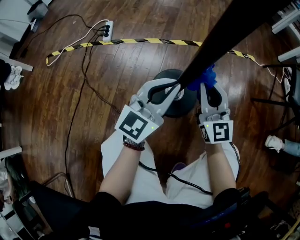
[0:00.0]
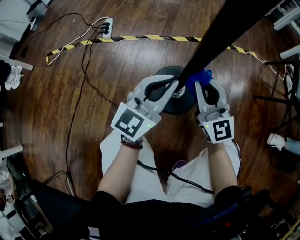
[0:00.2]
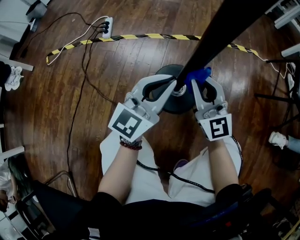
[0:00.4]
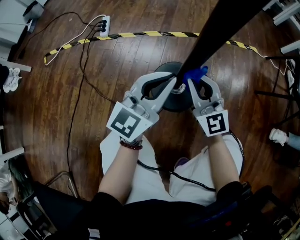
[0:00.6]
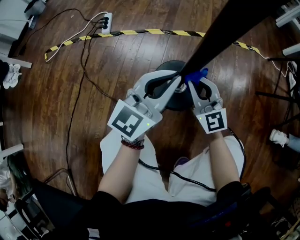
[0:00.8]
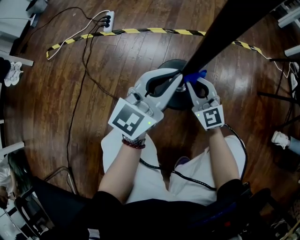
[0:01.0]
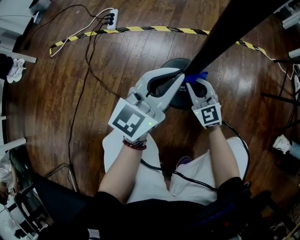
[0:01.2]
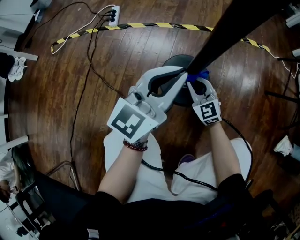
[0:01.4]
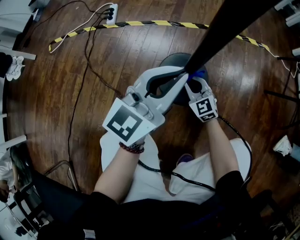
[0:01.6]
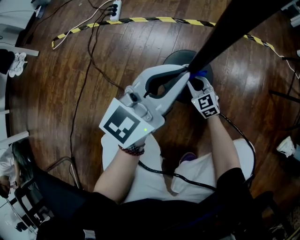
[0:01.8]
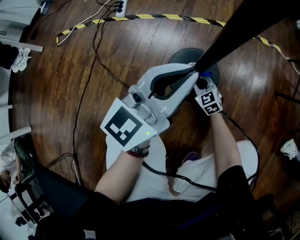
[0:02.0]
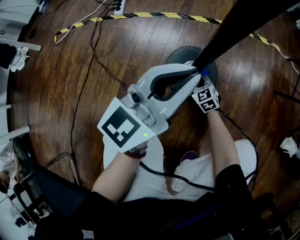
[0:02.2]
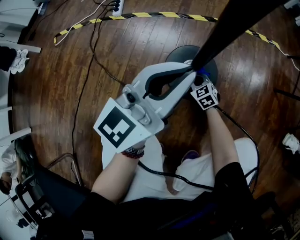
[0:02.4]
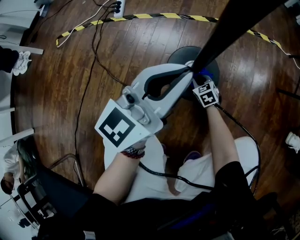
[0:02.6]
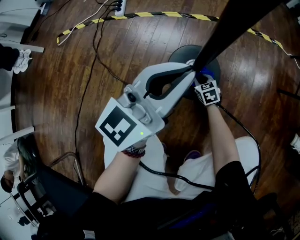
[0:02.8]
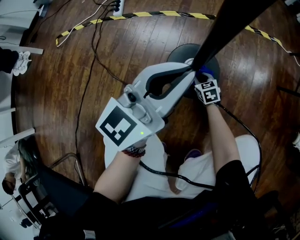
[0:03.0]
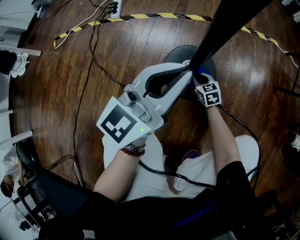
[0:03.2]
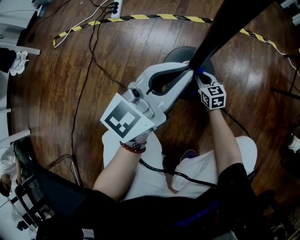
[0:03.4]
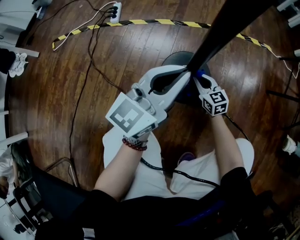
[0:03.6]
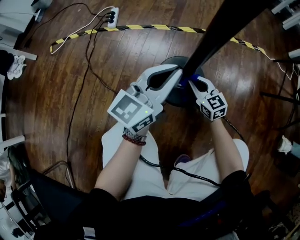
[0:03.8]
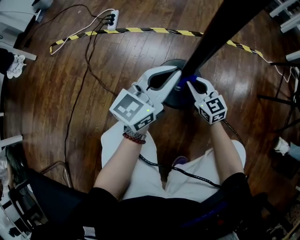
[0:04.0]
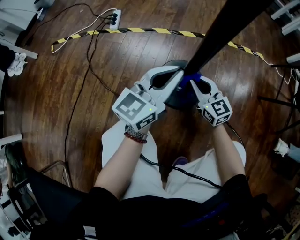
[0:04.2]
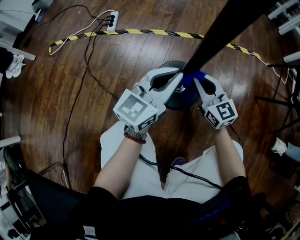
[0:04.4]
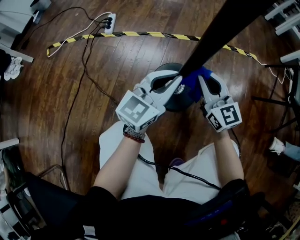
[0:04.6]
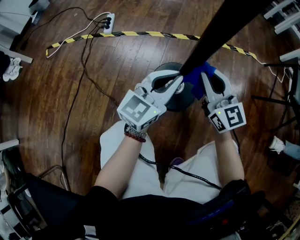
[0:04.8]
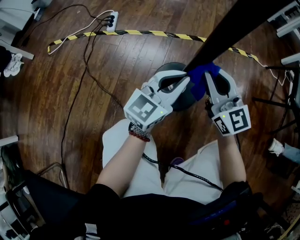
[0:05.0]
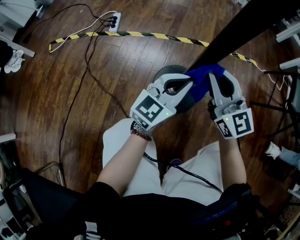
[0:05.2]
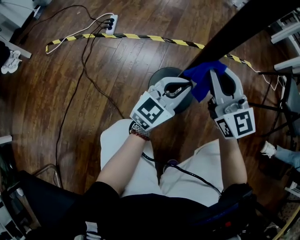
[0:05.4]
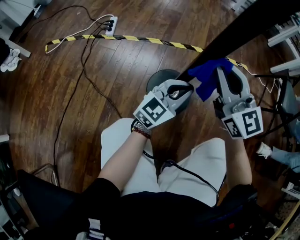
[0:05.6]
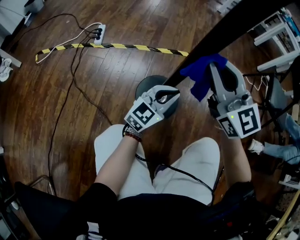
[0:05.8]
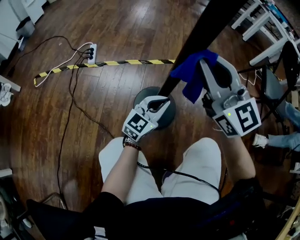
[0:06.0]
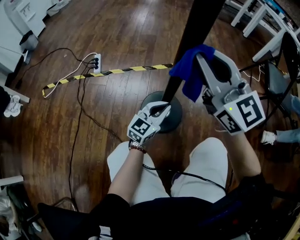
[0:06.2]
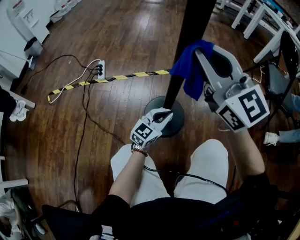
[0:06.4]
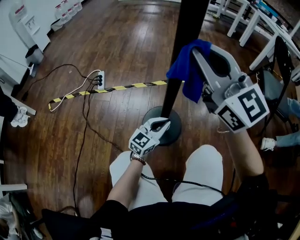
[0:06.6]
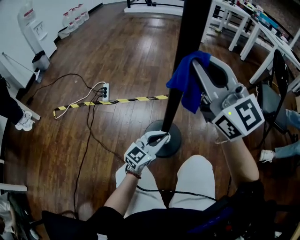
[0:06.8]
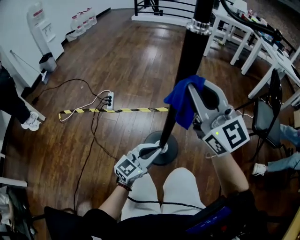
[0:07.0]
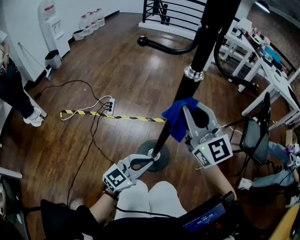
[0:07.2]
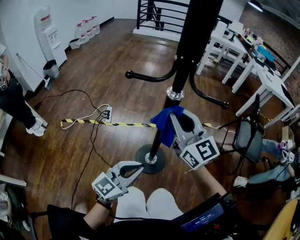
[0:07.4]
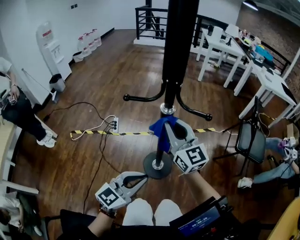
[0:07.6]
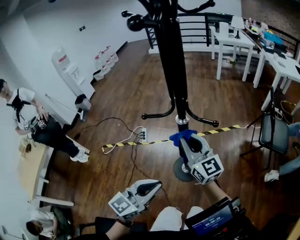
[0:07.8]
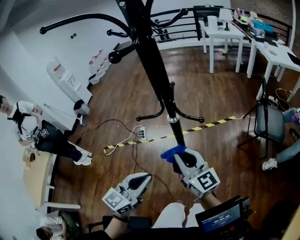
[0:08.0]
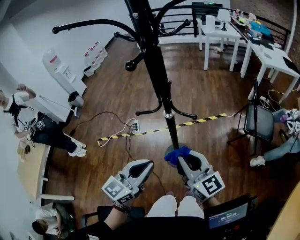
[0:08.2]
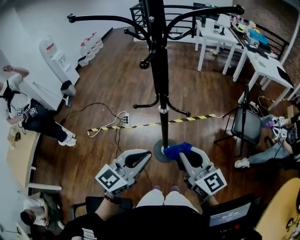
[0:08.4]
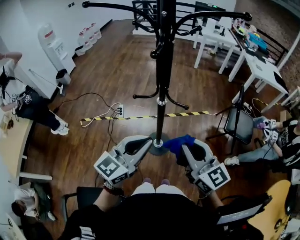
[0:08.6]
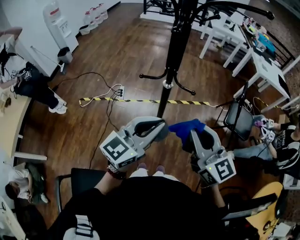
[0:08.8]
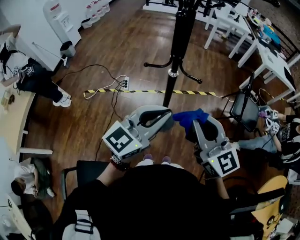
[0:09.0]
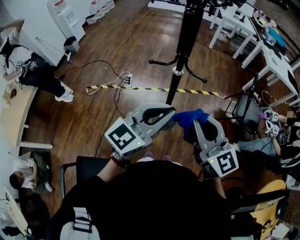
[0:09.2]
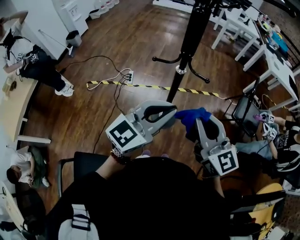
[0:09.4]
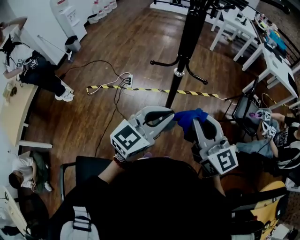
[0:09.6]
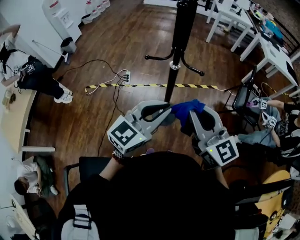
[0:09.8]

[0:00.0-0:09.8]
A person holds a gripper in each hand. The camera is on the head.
0:00.0 to 0:01.4: The right gripper moves downward, about 20 cm, and turns by some 30 degrees.
0:01.4 to 0:02.8: The right gripper shifts some 20 cm downward, and turns by about 40 degrees.
0:02.8 to 0:04.2: The right gripper heads upward, covering some 30 cm, and tips its fingers upward by some 30 degrees.
0:04.2 to 0:05.6: The left gripper travels to the right by about 5 cm; the right gripper is displaced upward by about 25 cm, and rotates some 20 degrees.
0:05.6 to 0:07.0: The right gripper moves upward, approximately 30 cm. The left gripper shifts roughly 15 cm upward and backward.
0:07.0 to 0:08.4: The left gripper moves upward, about 50 cm; the right gripper goes some 35 cm upward and backward, and changes its angle by some 30 degrees.
0:08.4 to 0:09.8: The right gripper shifts by approximately 5 cm.

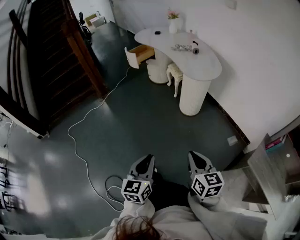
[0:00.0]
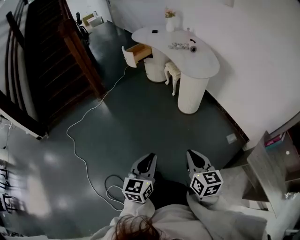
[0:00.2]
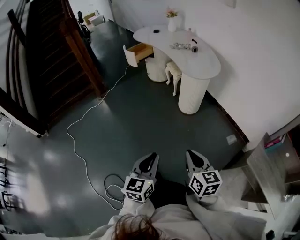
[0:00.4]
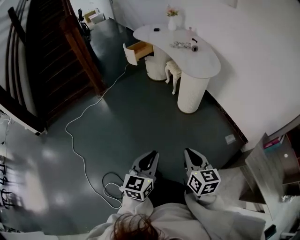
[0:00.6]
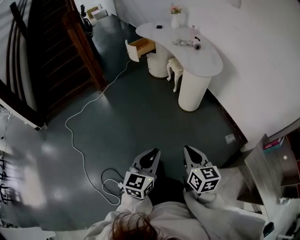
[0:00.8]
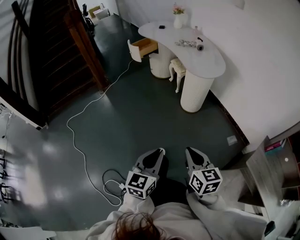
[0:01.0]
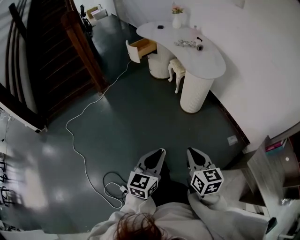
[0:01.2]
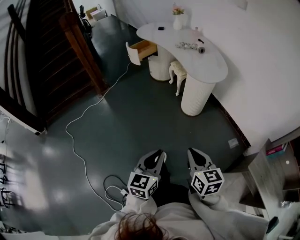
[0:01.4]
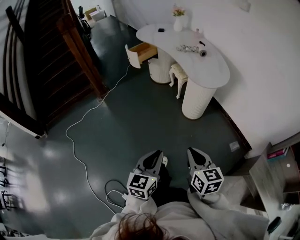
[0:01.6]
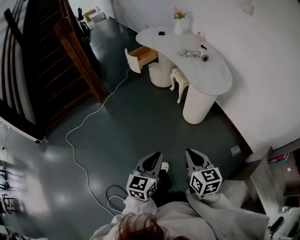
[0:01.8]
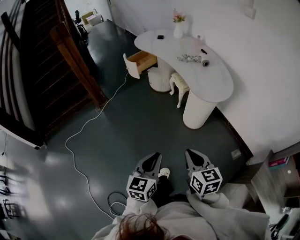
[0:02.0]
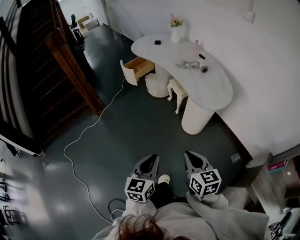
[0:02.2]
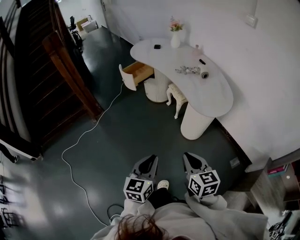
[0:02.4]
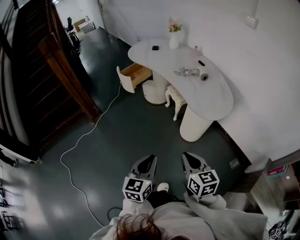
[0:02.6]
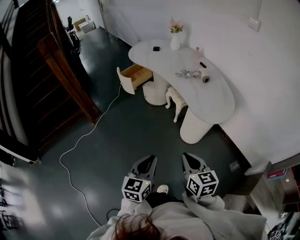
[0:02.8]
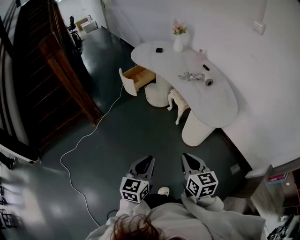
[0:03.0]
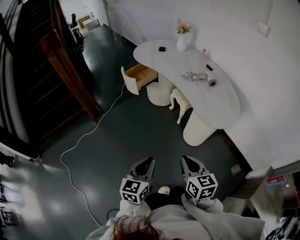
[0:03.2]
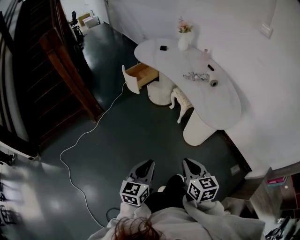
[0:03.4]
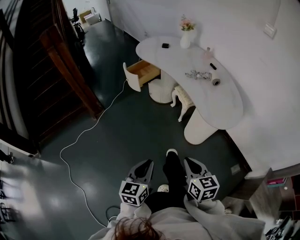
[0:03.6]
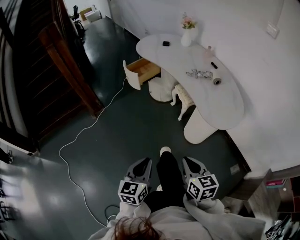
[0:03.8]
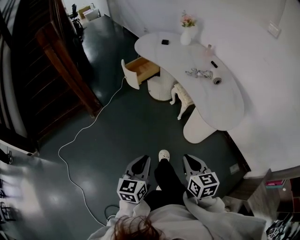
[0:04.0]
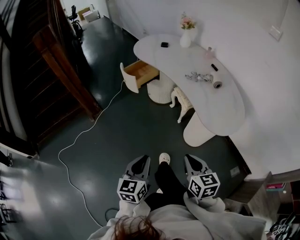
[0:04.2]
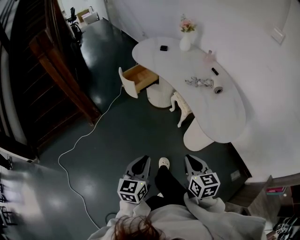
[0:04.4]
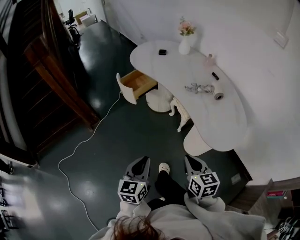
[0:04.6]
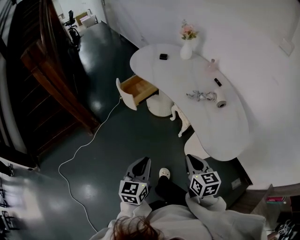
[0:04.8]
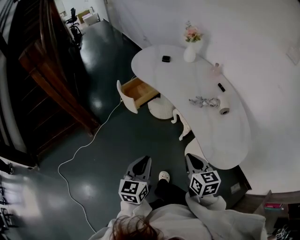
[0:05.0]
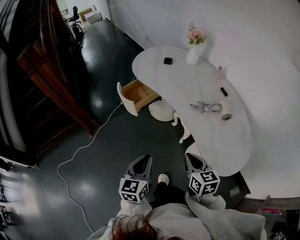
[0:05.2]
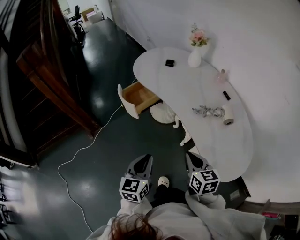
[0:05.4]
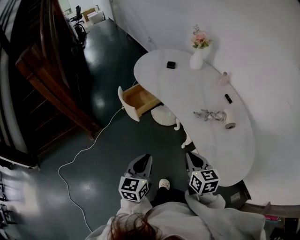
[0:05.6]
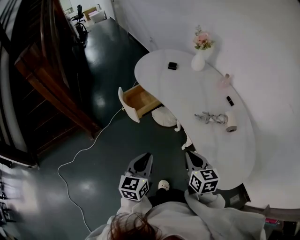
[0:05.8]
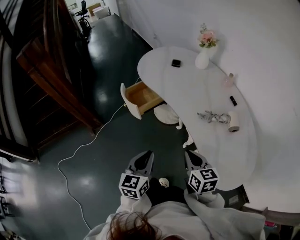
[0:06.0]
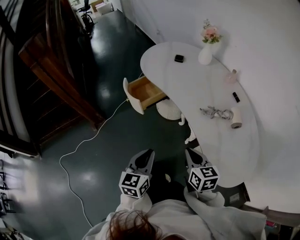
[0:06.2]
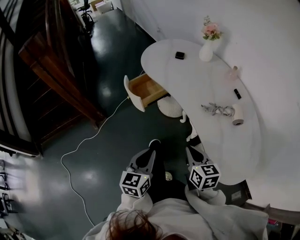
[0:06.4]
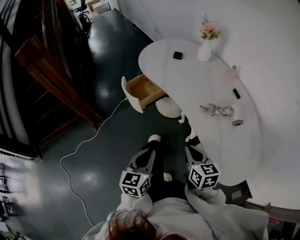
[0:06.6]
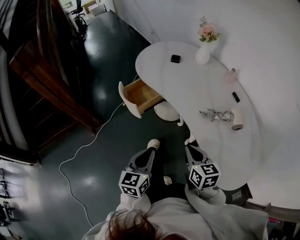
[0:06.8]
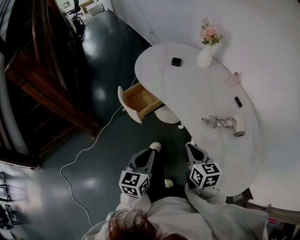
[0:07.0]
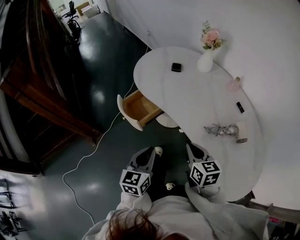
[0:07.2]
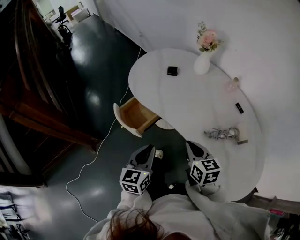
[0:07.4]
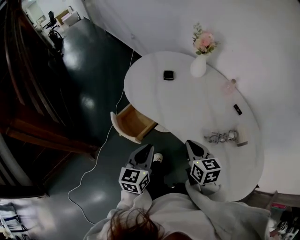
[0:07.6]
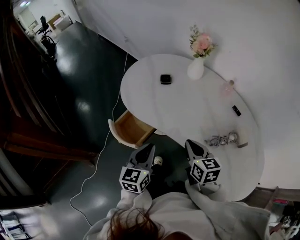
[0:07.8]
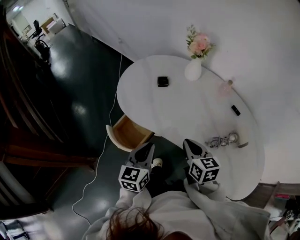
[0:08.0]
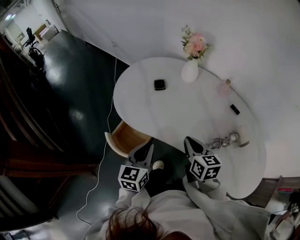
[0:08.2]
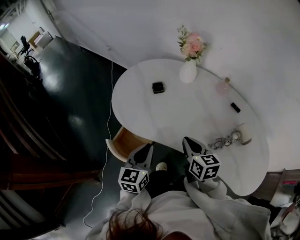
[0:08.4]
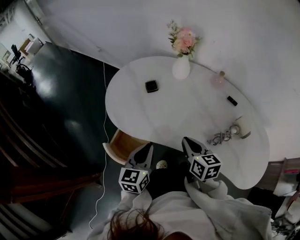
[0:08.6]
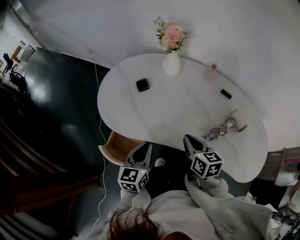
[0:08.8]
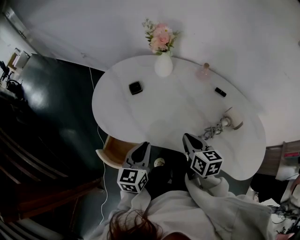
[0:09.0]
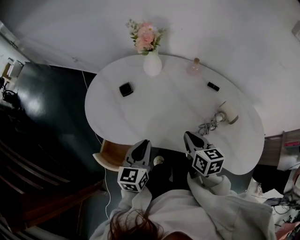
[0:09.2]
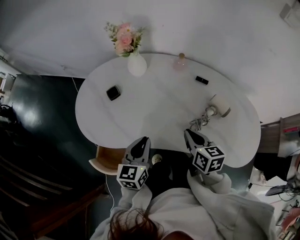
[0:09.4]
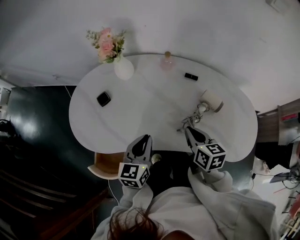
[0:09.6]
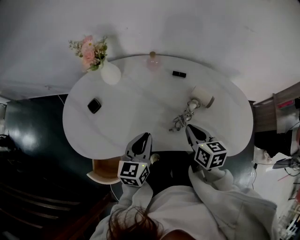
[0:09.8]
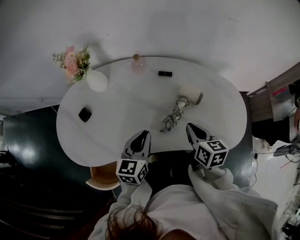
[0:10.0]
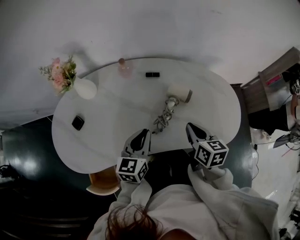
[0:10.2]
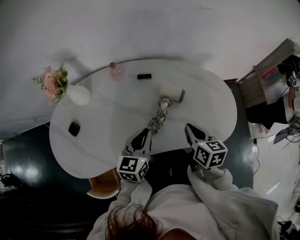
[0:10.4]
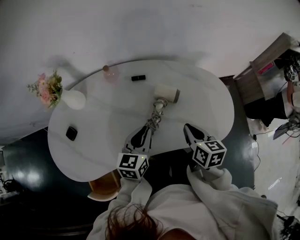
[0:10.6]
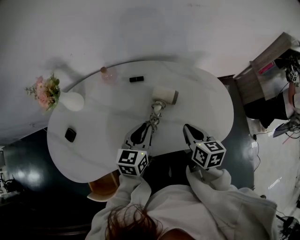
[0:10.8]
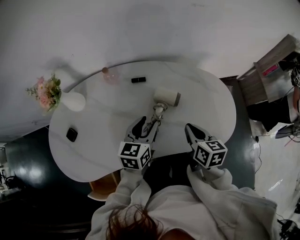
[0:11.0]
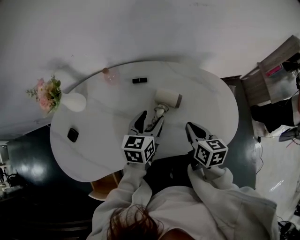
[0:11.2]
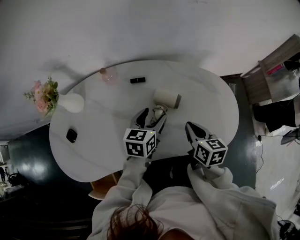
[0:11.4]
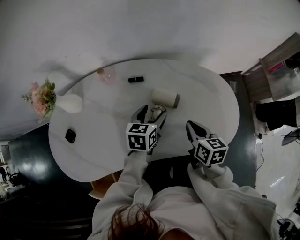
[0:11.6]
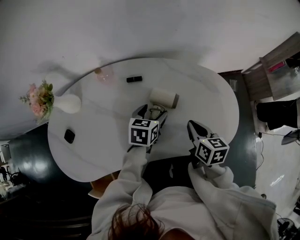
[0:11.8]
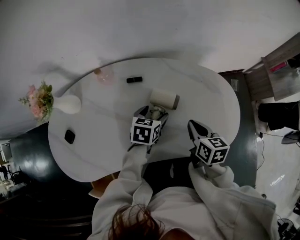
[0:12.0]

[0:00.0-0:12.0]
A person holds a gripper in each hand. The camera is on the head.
0:00.0 to 0:01.6: The grippers both shift forward by some 10 cm.
0:01.6 to 0:03.0: The grippers both shift forward by roughly 25 cm.
0:03.0 to 0:04.4: Both grippers move forward, some 10 cm.
0:04.4 to 0:06.0: Both grippers move forward, roughly 25 cm.
0:06.0 to 0:07.6: The two grippers go about 25 cm forward.
0:07.6 to 0:09.0: The right gripper is displaced forward by approximately 10 cm, and rotates roughly 30 degrees. Meanwhile the left gripper is displaced forward by roughly 15 cm, and changes its angle by roughly 20 degrees.
0:09.0 to 0:10.4: The right gripper ends up some 25 cm from where it was, and changes its angle by approximately 40 degrees. Meanwhile the left gripper changes place by roughly 25 cm, and turns by approximately 40 degrees.
0:10.4 to 0:12.0: The right gripper moves forward, to the right and downward, approximately 10 cm. The left gripper travels forward, downward and to the right by about 20 cm, turns by some 30 degrees, and opens its fingers.

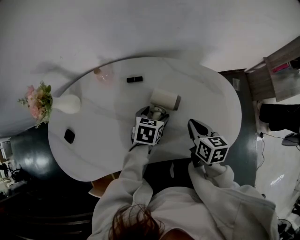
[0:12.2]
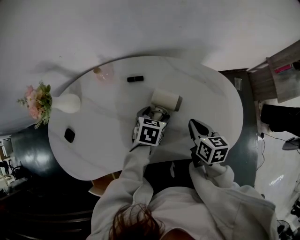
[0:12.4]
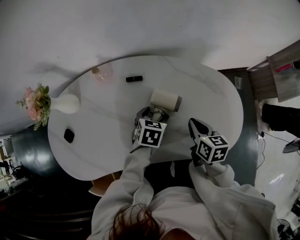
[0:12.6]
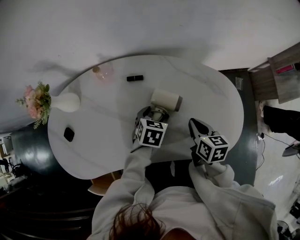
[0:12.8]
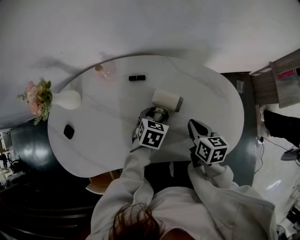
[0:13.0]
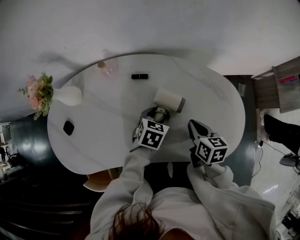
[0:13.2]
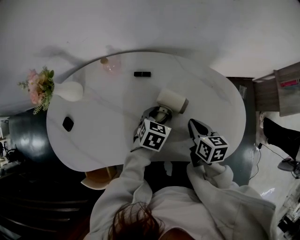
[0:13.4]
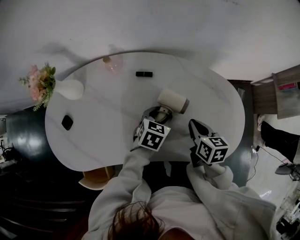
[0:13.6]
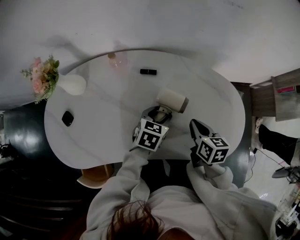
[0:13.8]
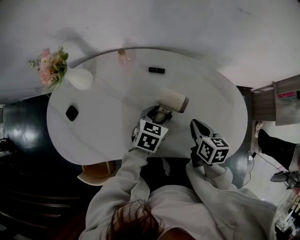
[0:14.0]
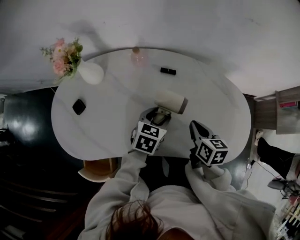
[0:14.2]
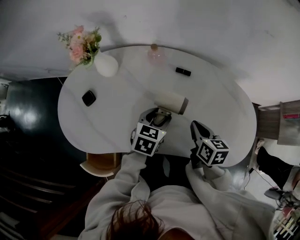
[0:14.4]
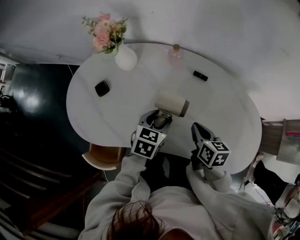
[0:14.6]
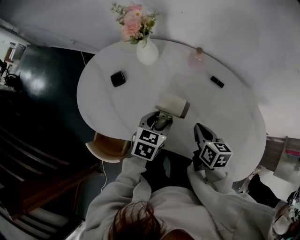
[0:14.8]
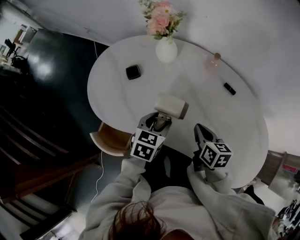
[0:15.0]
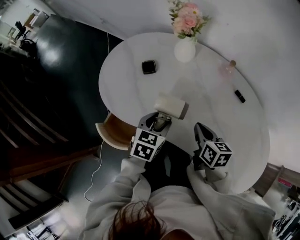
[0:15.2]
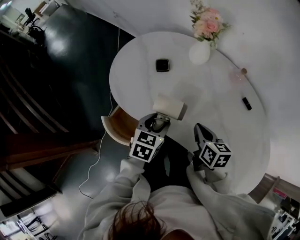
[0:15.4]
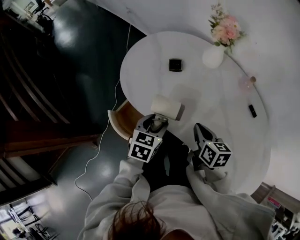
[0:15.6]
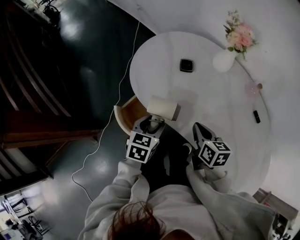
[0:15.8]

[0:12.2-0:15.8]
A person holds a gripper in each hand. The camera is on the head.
0:12.2 to 0:14.0: The left gripper moves about 5 cm.
0:14.0 to 0:15.8: The right gripper changes place by about 40 cm, and swivels some 50 degrees; the left gripper moves about 50 cm, and swivels about 60 degrees.
